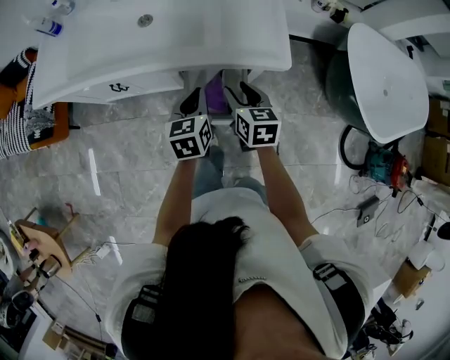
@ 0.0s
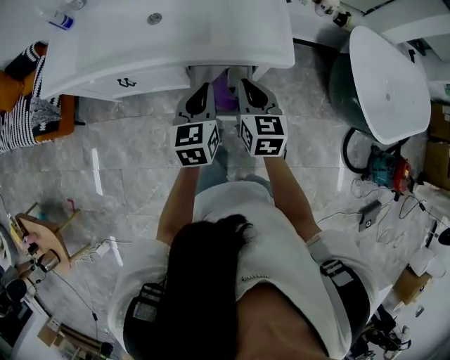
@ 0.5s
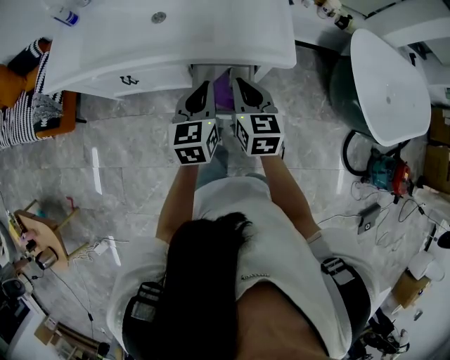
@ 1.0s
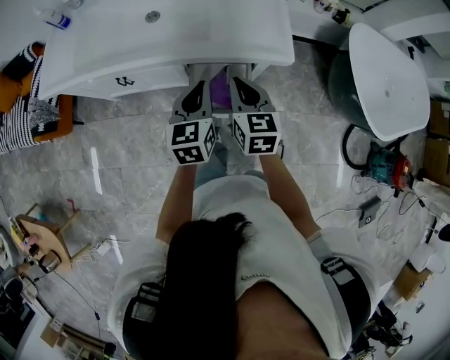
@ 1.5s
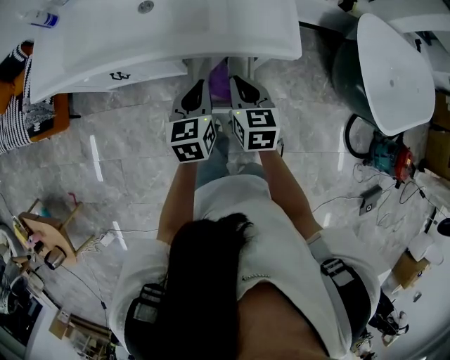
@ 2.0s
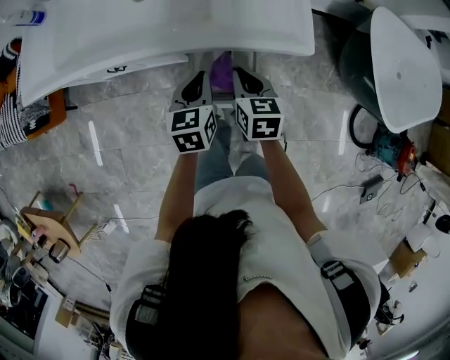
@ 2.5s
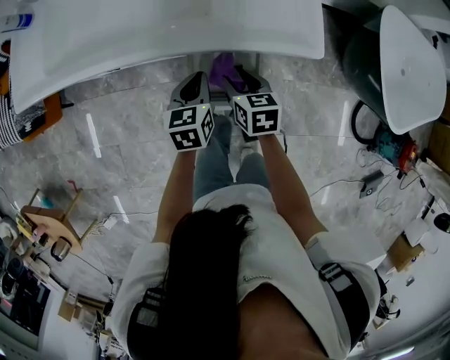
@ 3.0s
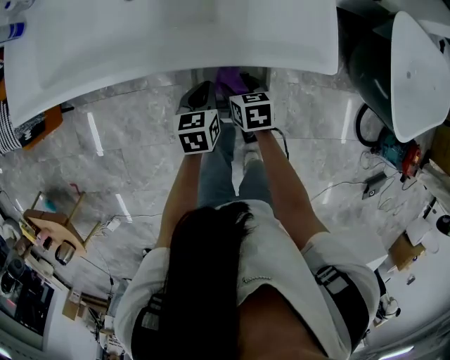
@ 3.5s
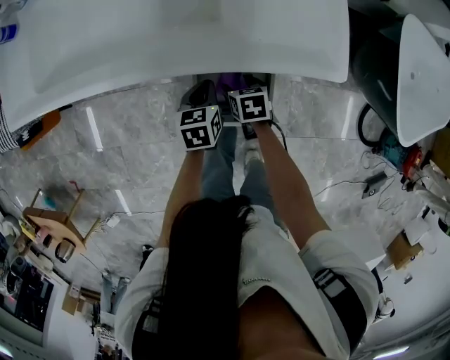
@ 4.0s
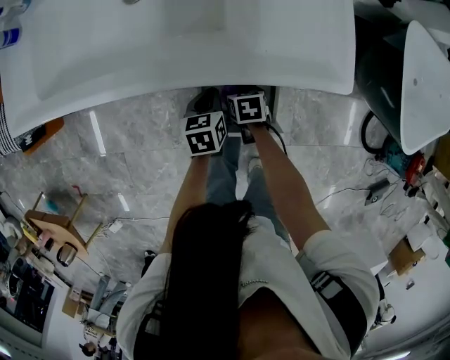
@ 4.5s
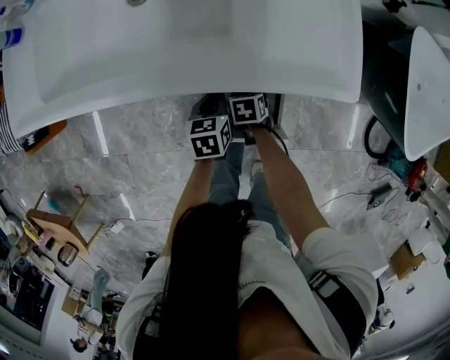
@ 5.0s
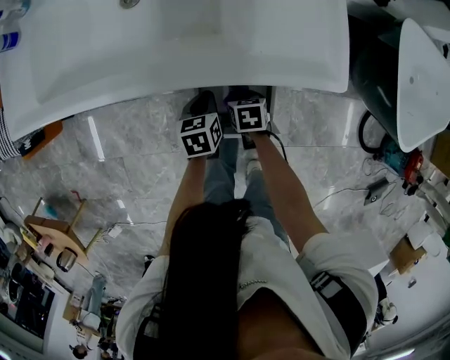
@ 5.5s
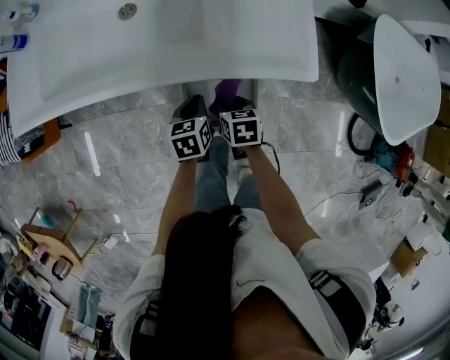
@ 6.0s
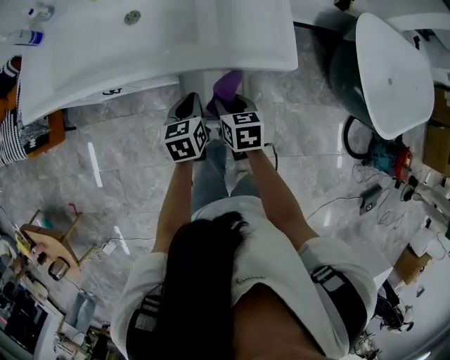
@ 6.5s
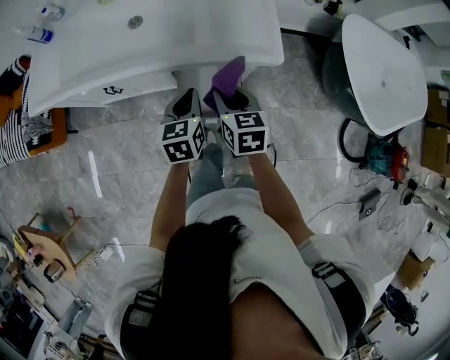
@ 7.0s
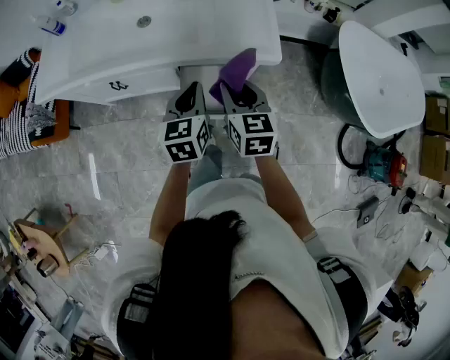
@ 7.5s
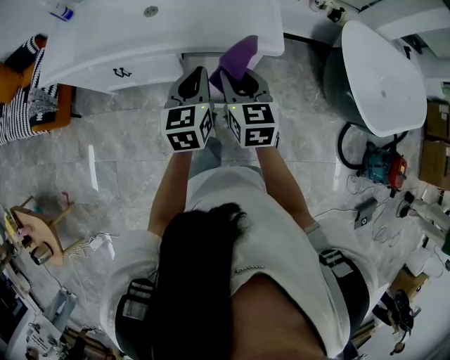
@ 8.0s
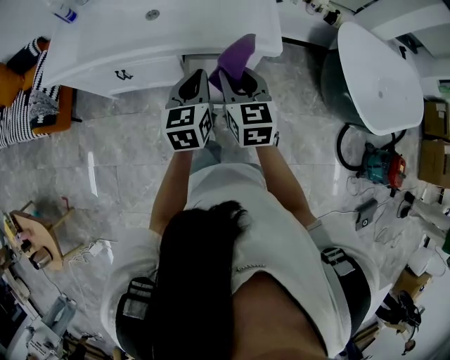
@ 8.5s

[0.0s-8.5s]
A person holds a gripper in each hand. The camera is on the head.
0.0s to 2.0s: The left gripper moves approximately 10 cm upward and comes back; the right gripper moves some 10 cm upward and comes back, and closes.
2.0s to 4.0s: Both grippers travel together downward, some 25 cm. The right gripper points its fingers some 30 degrees further downward, and opens; the left gripper changes its angle by approximately 20 degrees.
4.0s to 6.5s: The two grippers go some 15 cm upward. The right gripper closes.
6.5s to 8.5s: The left gripper travels upward and backward by some 20 cm, and rotates approximately 20 degrees. The right gripper heads upward, covering roughly 20 cm, and rotates about 30 degrees.

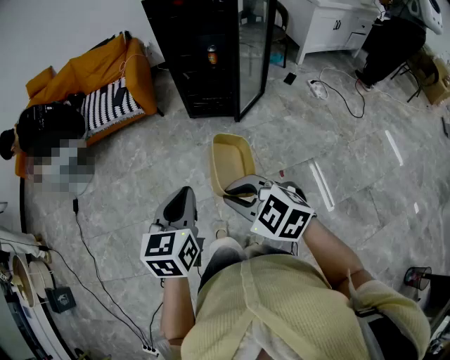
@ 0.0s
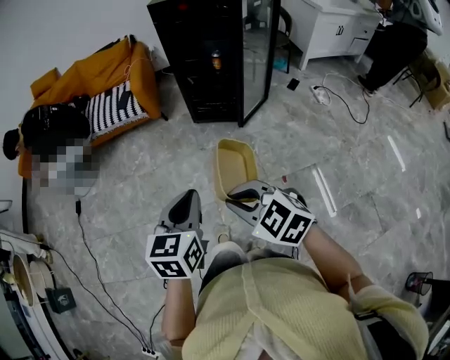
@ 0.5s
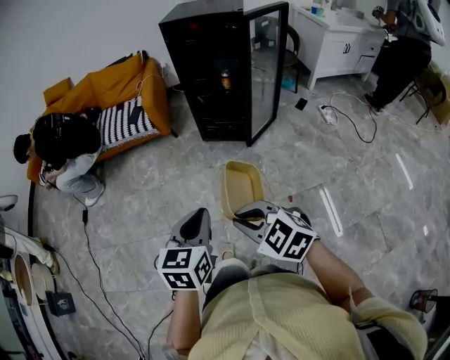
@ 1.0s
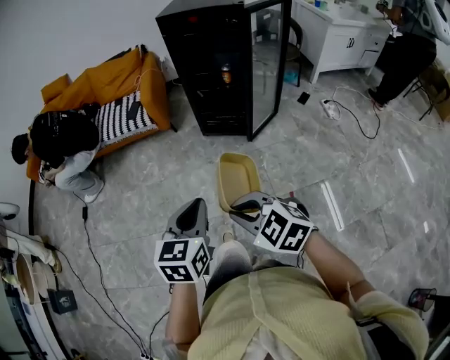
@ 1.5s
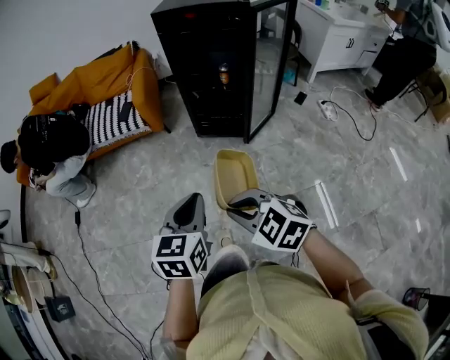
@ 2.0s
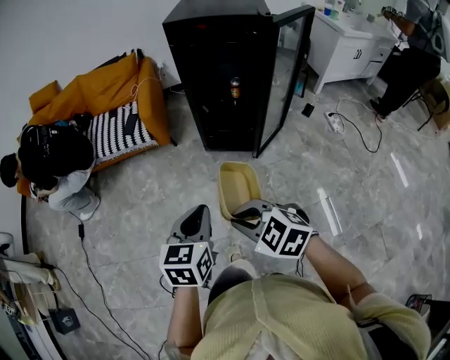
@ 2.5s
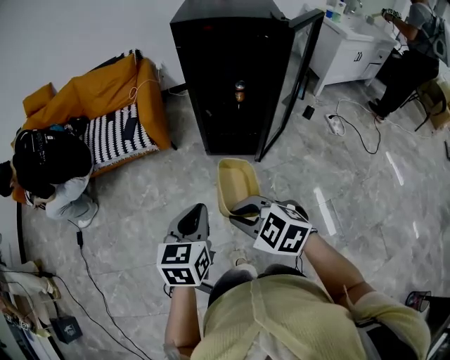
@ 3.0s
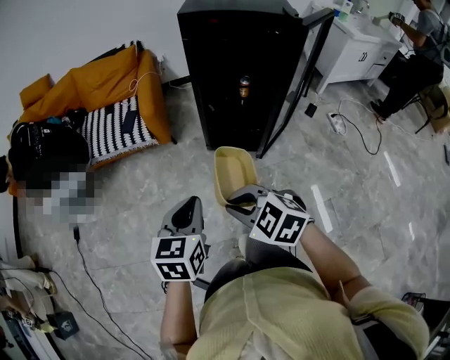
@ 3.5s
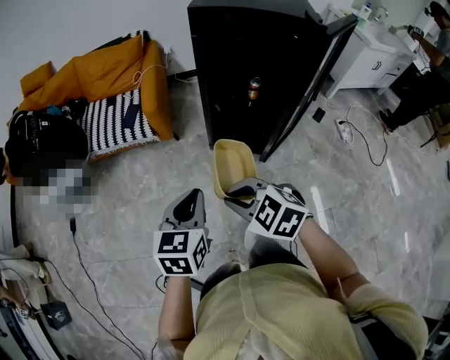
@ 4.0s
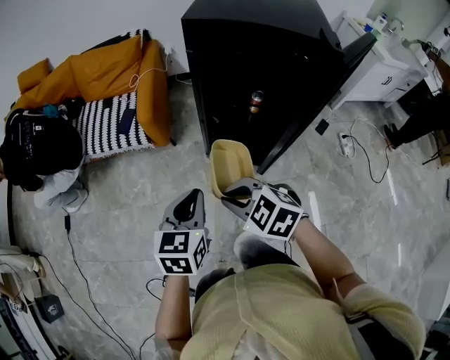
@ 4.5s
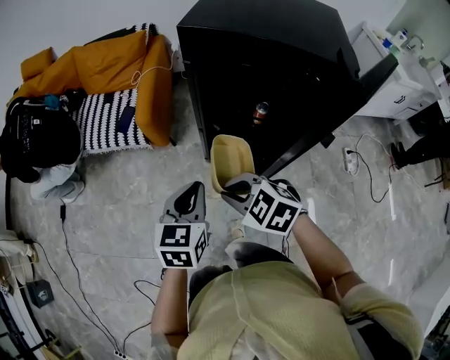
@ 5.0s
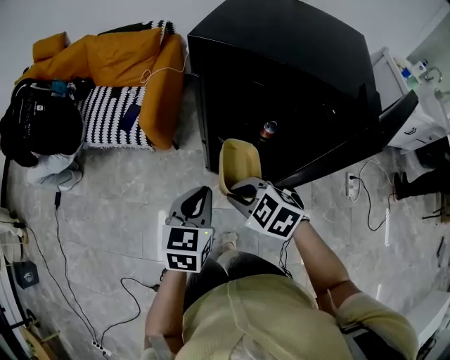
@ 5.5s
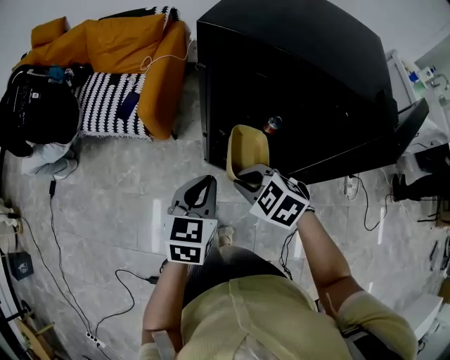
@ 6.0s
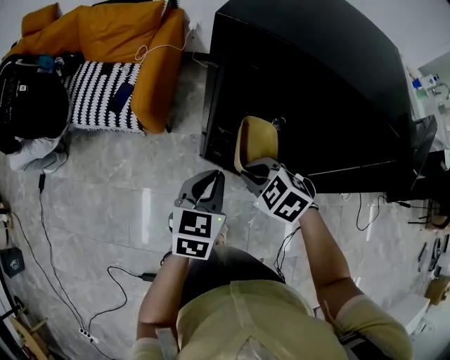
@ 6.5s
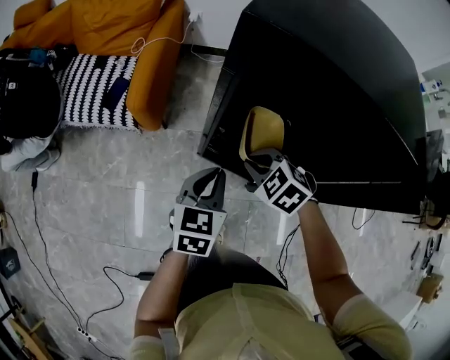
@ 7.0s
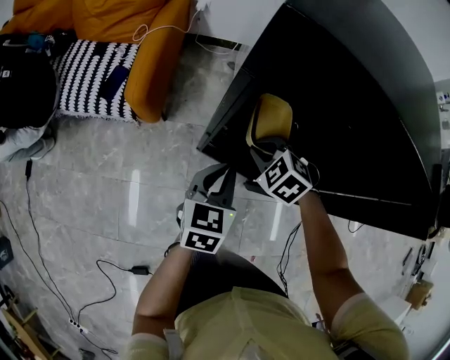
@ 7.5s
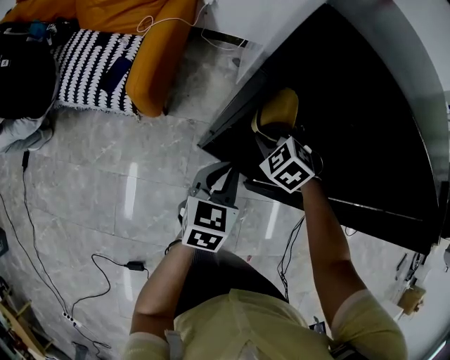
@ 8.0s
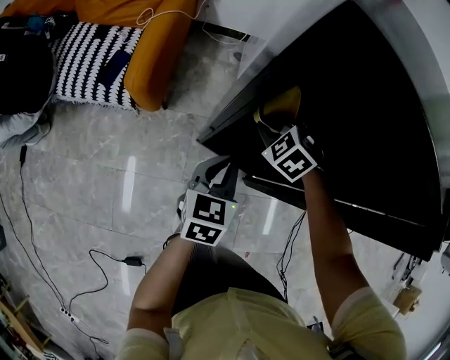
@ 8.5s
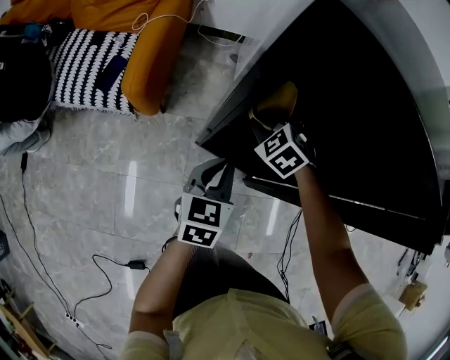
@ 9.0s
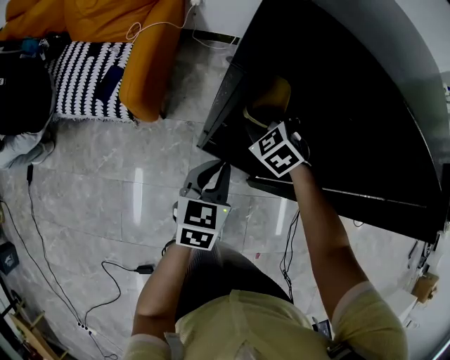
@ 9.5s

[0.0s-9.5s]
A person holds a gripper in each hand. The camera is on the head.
0.0s to 2.0s: The grippers both shift forward by approximately 10 cm.
2.0s to 4.0s: The grippers both shift forward by about 25 cm.
4.0s to 5.5s: Both grippers move to the right and forward, about 25 cm.
5.5s to 7.5s: Both grippers travel together forward, downward and to the right, roughly 20 cm. The right gripper rotates about 20 degrees.
7.5s to 9.5s: The right gripper travels forward by approximately 5 cm.

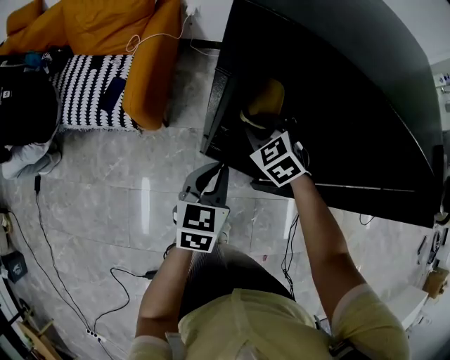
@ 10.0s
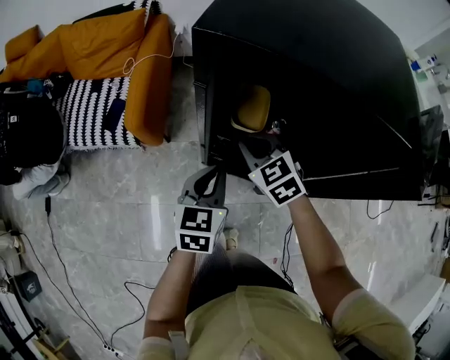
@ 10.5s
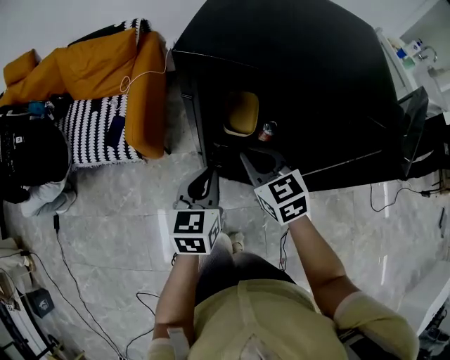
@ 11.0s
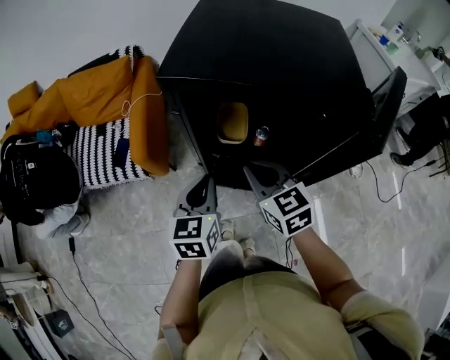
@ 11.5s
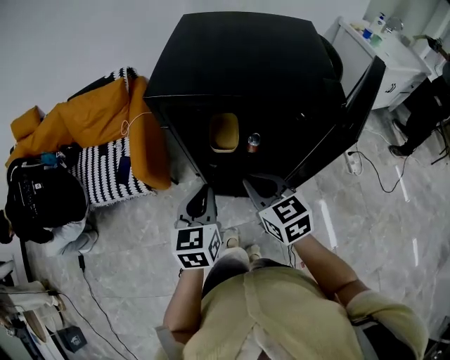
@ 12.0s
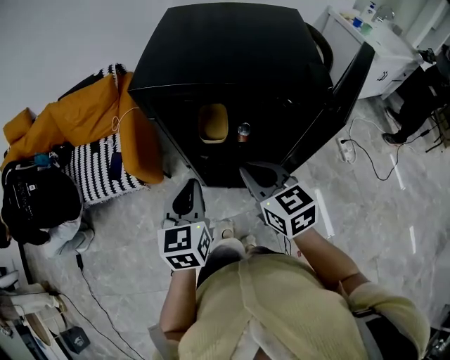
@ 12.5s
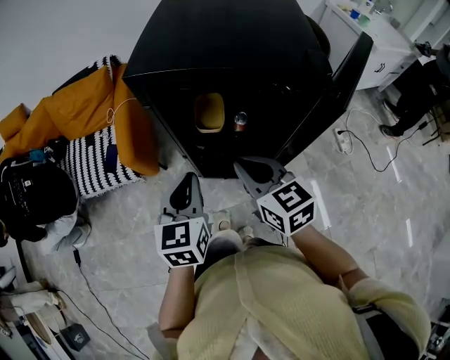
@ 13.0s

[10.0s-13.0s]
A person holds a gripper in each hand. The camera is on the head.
10.0s to 11.5s: The left gripper travels upward by roughly 10 cm; the right gripper moves upward and backward, roughly 20 cm, and changes its angle by approximately 40 degrees.
11.5s to 13.0s: The right gripper heads backward, covering approximately 5 cm. The left gripper changes place by approximately 5 cm.

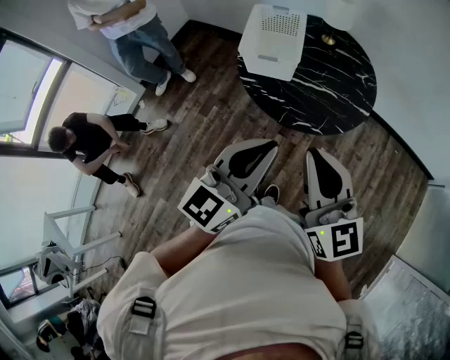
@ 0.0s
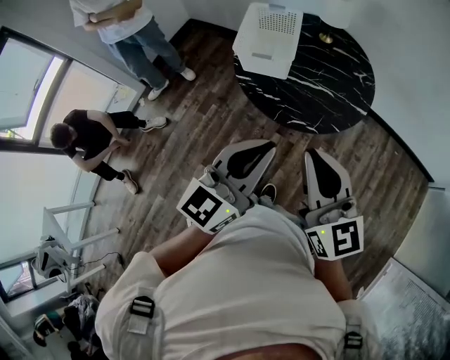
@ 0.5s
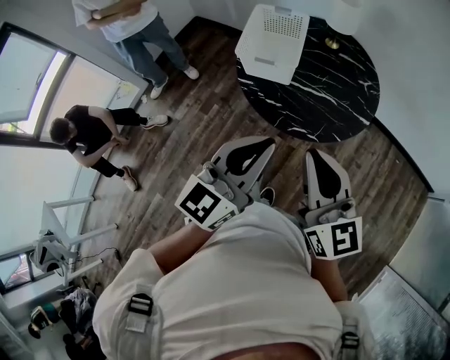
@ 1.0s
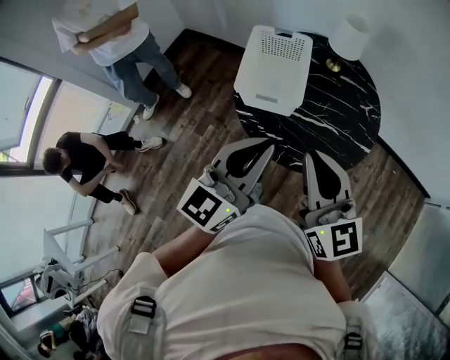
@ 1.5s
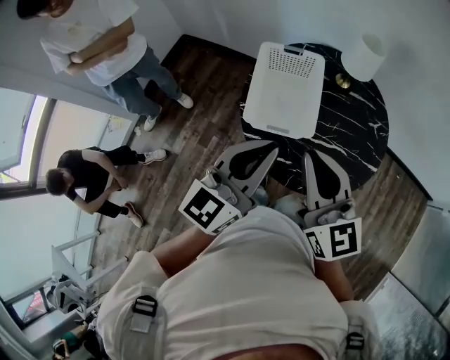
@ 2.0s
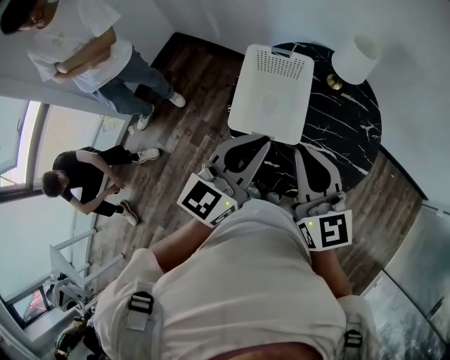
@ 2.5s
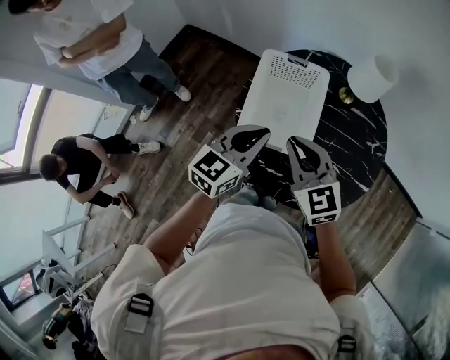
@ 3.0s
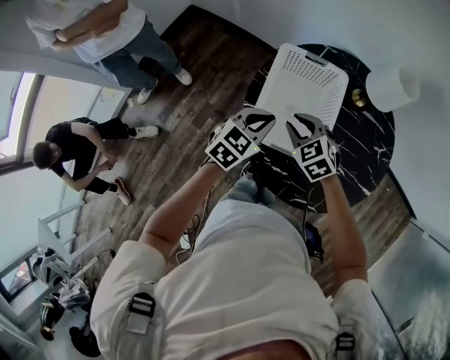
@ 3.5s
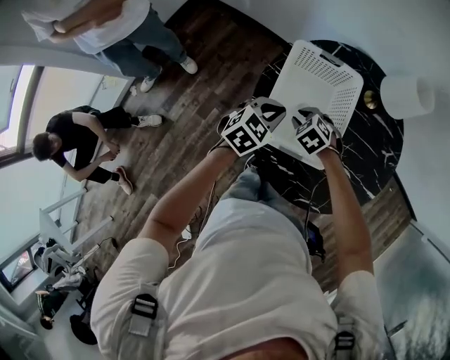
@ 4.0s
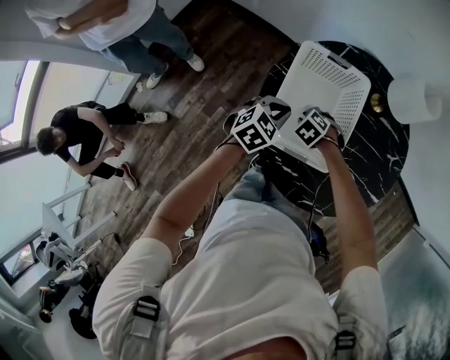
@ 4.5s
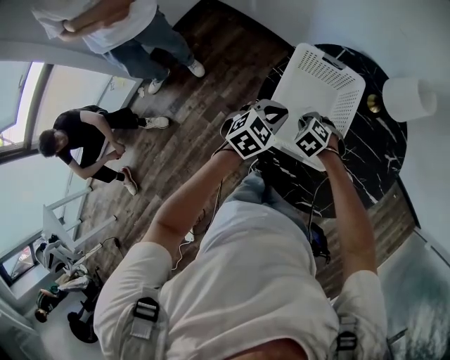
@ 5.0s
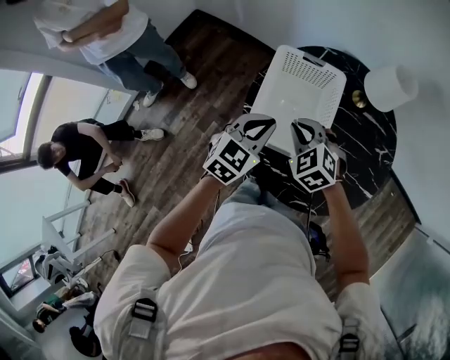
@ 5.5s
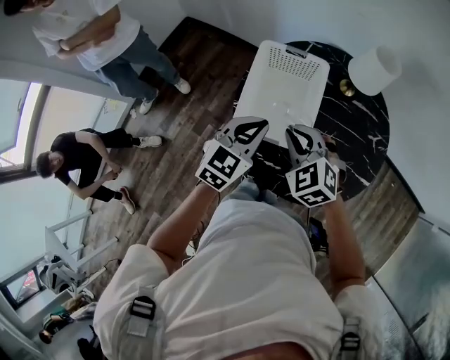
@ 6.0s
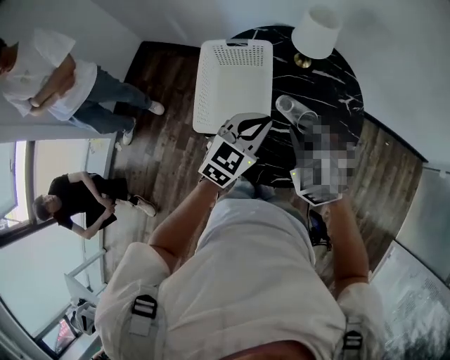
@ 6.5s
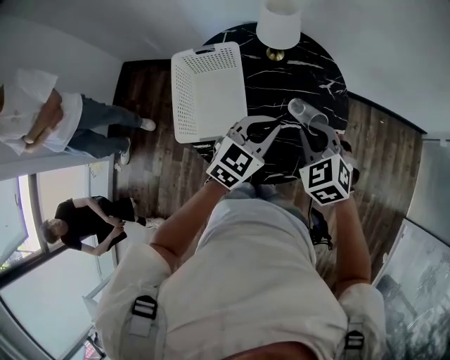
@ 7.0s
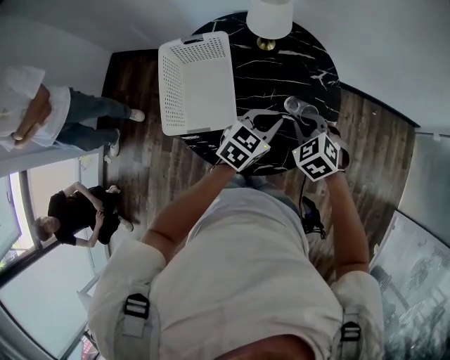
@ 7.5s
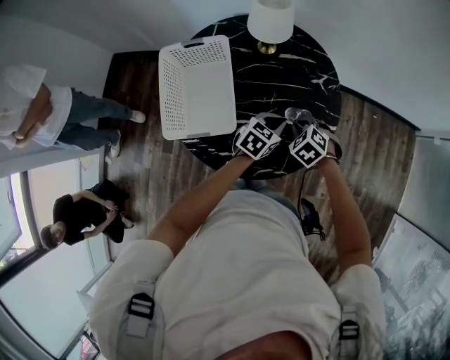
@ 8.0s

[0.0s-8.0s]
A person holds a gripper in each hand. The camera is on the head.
0.0s to 2.0s: Both grippers move forward, about 30 cm.
2.0s to 4.0s: The two grippers go approximately 40 cm downward and forward. The left gripper points its fingers about 40 degrees further downward. The right gripper tilts its fingers roughly 70 degrees downward, and opens up.
4.0s to 6.0s: The left gripper moves upward, roughly 10 cm, while the right gripper shifts some 20 cm upward, and swivels some 30 degrees.
6.0s to 8.0s: The left gripper ends up some 35 cm from where it was, and swivels some 30 degrees, while the right gripper shifts by roughly 35 cm, and turns by some 30 degrees.
